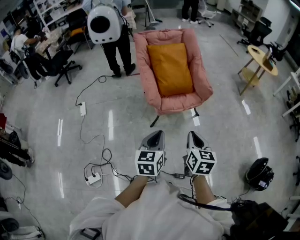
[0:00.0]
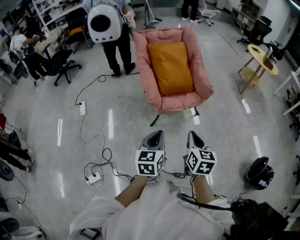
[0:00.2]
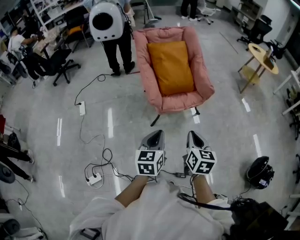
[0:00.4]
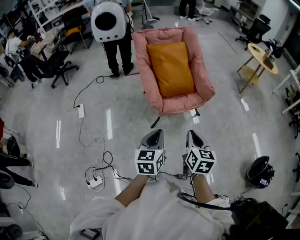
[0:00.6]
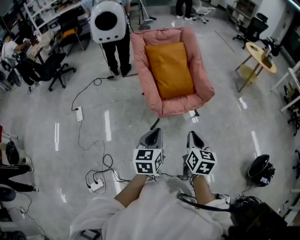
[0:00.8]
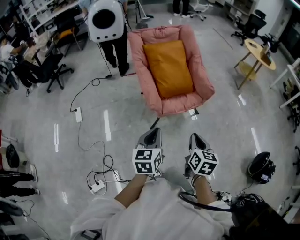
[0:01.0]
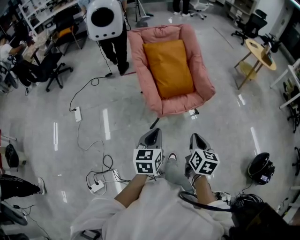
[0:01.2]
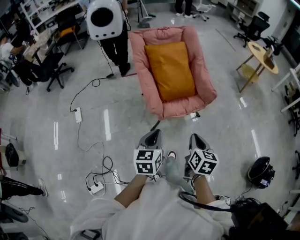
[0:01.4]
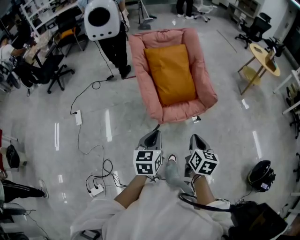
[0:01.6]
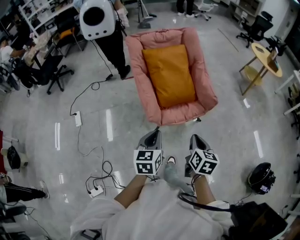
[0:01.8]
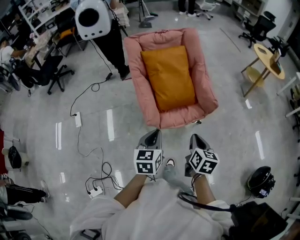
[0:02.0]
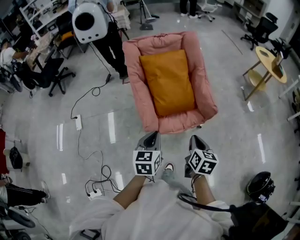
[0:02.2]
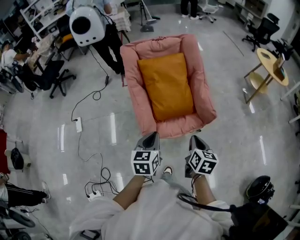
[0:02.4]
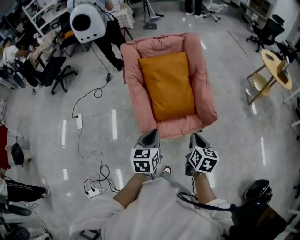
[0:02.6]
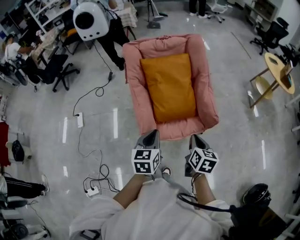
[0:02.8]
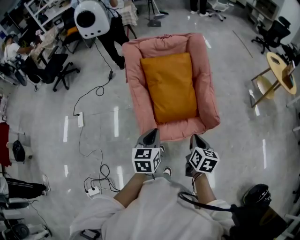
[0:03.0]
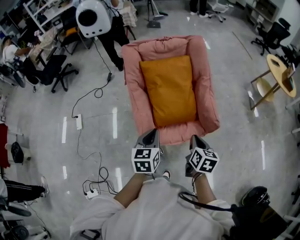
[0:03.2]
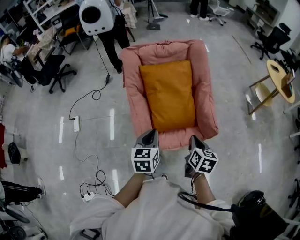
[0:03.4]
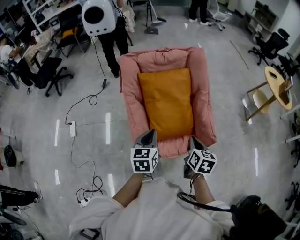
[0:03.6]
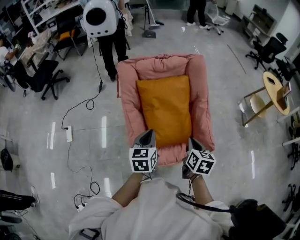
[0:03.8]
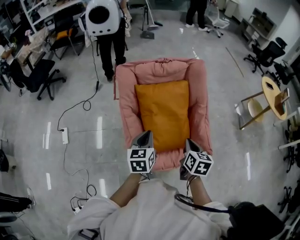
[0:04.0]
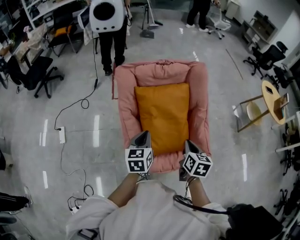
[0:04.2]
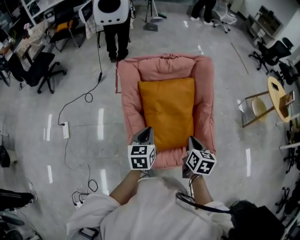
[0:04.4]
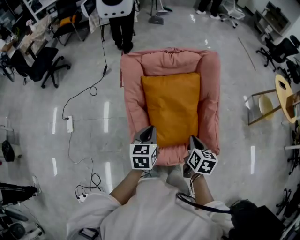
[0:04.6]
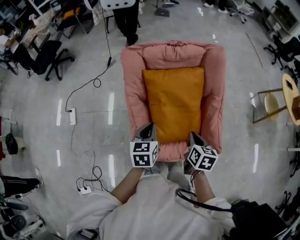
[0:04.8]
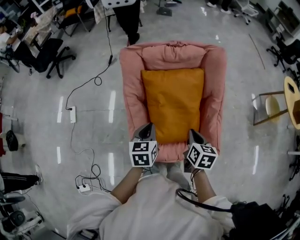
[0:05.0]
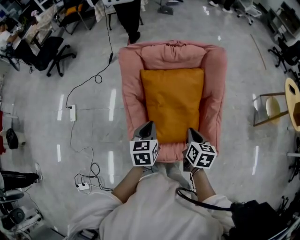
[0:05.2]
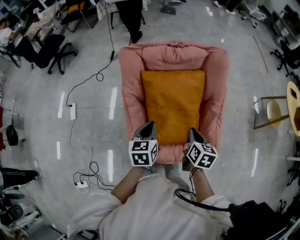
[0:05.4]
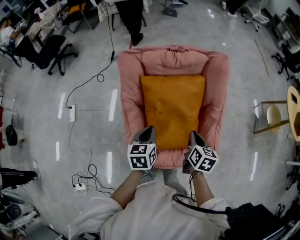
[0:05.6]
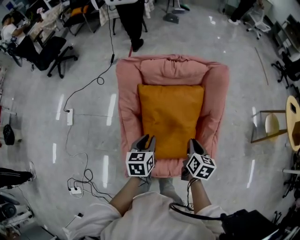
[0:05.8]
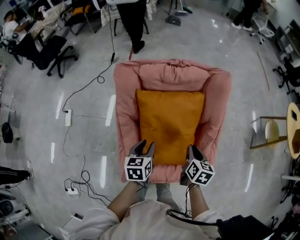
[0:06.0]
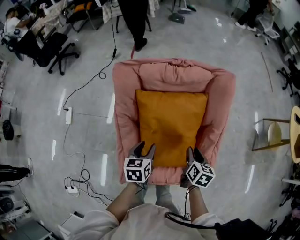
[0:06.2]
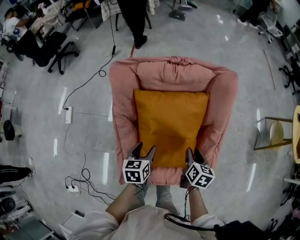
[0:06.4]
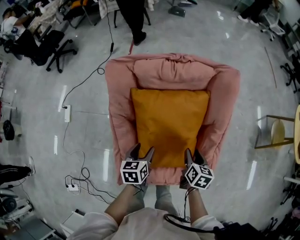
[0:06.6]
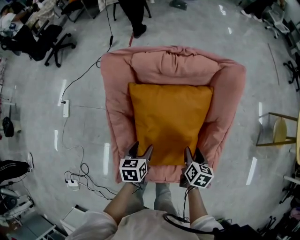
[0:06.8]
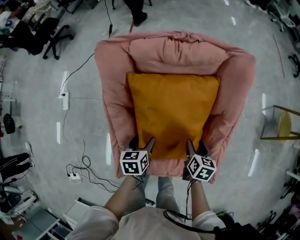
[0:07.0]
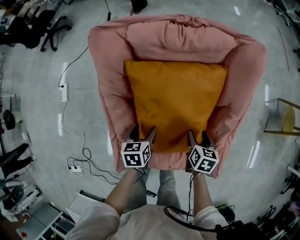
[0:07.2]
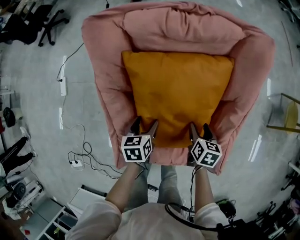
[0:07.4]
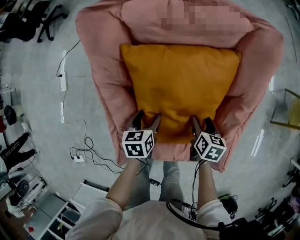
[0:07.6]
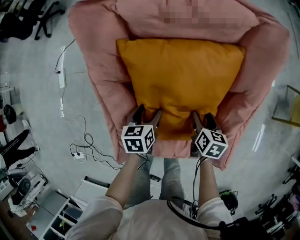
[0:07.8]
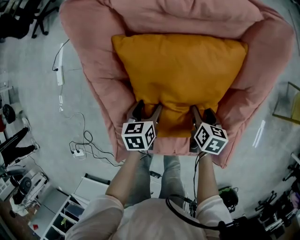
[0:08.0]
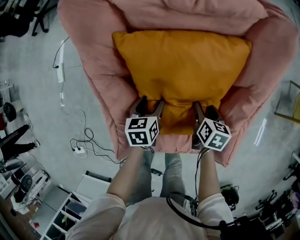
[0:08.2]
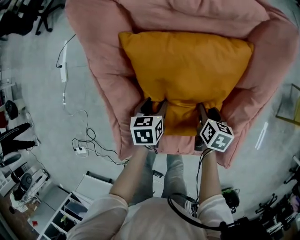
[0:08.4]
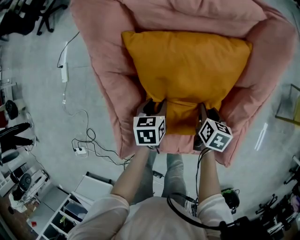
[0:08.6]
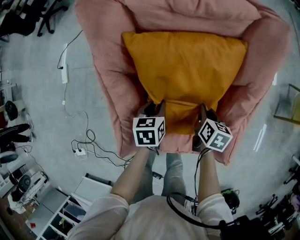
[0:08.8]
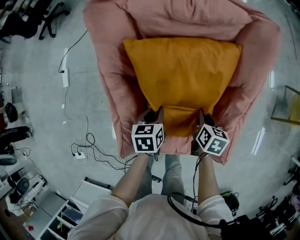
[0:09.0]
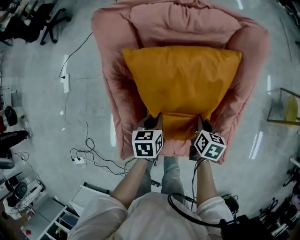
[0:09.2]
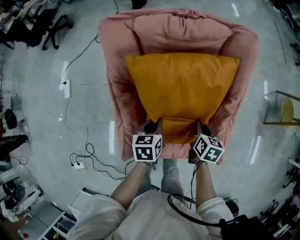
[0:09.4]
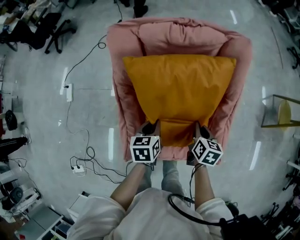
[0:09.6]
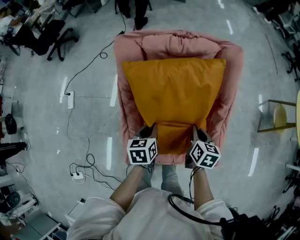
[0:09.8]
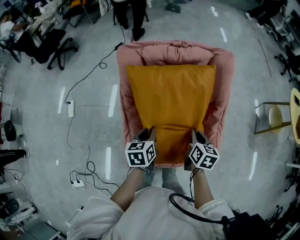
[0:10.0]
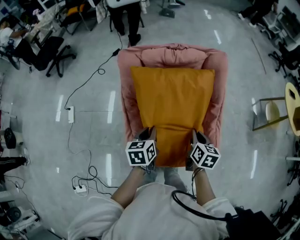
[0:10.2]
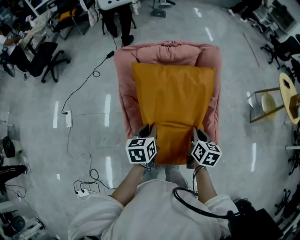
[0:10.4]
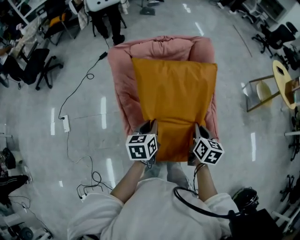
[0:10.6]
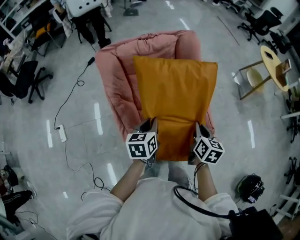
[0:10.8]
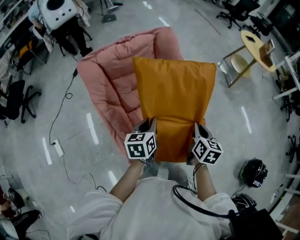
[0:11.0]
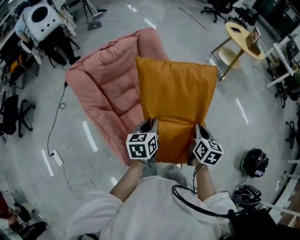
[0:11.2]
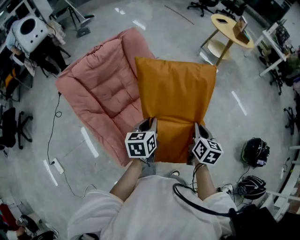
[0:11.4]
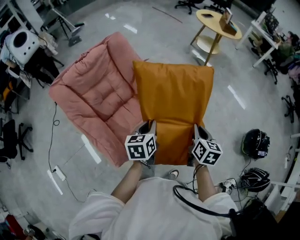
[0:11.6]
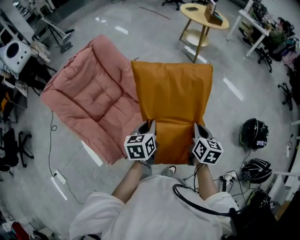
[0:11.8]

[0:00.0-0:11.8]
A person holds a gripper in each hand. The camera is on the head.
0:00.0 to 0:01.4: The left gripper moves forward and to the left, approximately 15 cm. The right gripper goes about 10 cm forward.
0:01.4 to 0:03.0: Both grippers move forward, roughly 25 cm.
0:03.0 to 0:04.4: Both grippers travel together forward, about 25 cm.
0:04.4 to 0:06.0: The right gripper goes about 15 cm forward, downward and to the right. The left gripper goes roughly 10 cm downward, forward and to the right, and opens.
0:06.0 to 0:07.4: Both grippers travel together downward, roughly 20 cm. The left gripper opens up; the right gripper opens.
0:07.4 to 0:08.8: The left gripper closes. Meanwhile the right gripper closes its fingers.
0:08.8 to 0:10.4: The left gripper travels upward by some 25 cm, and rotates approximately 20 degrees; the right gripper moves upward and backward, some 30 cm, and rotates roughly 20 degrees.
0:10.4 to 0:11.8: The left gripper changes place by roughly 35 cm, and turns by about 40 degrees. Meanwhile the right gripper changes place by approximately 40 cm, and changes its angle by roughly 40 degrees.

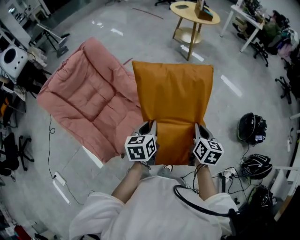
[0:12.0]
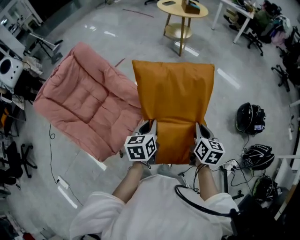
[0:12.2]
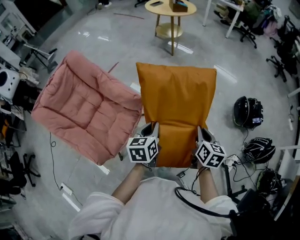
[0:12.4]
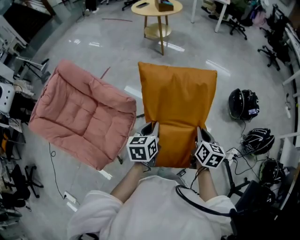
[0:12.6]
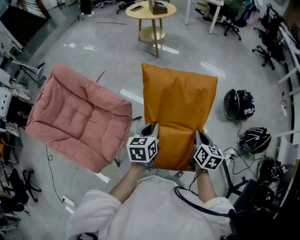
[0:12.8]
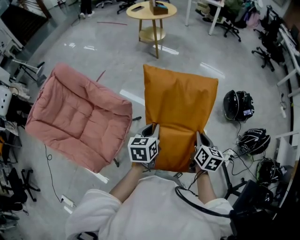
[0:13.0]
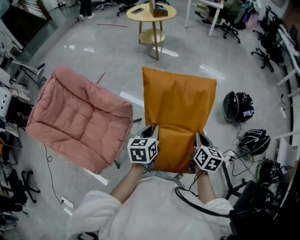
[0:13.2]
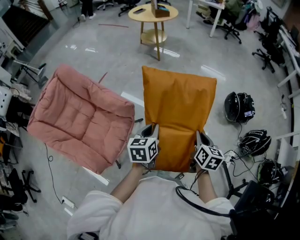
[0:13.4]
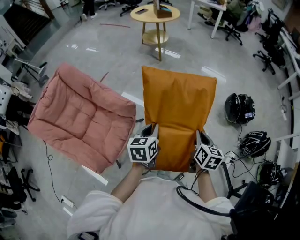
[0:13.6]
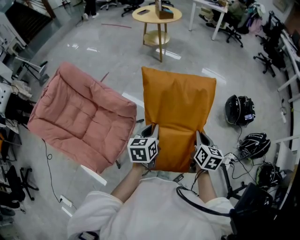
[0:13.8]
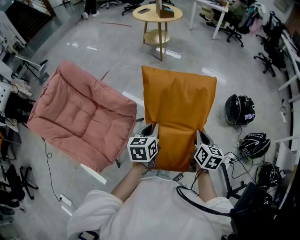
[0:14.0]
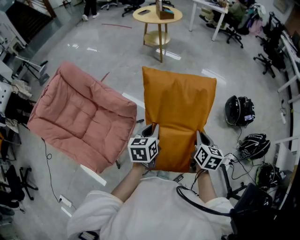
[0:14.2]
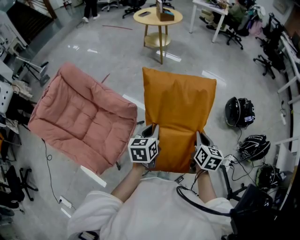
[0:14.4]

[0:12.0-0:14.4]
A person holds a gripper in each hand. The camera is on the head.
0:12.0 to 0:13.2: The left gripper goes some 15 cm to the right; the right gripper moves to the right and backward, roughly 20 cm.
0:13.2 to 0:14.4: The grippers stay close to where they were, moving slightly.

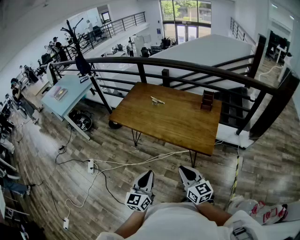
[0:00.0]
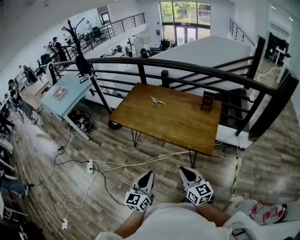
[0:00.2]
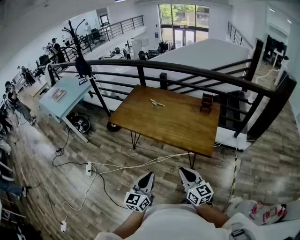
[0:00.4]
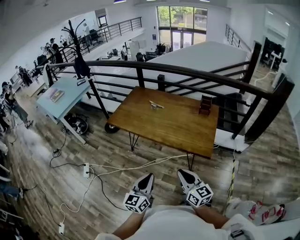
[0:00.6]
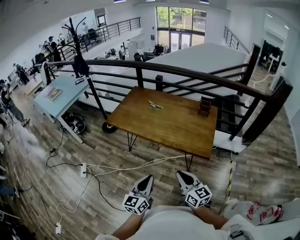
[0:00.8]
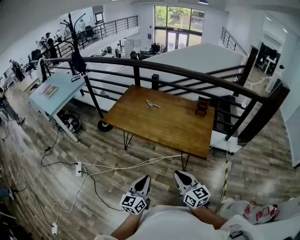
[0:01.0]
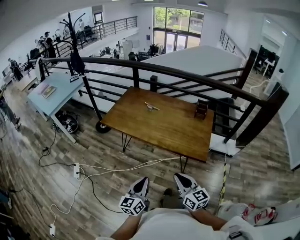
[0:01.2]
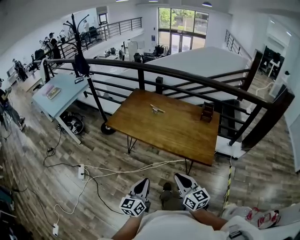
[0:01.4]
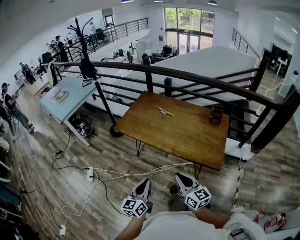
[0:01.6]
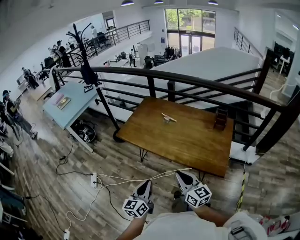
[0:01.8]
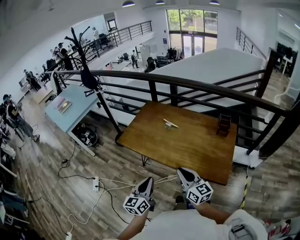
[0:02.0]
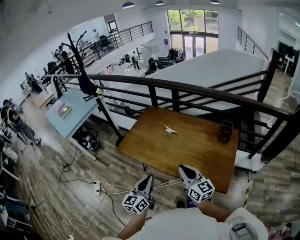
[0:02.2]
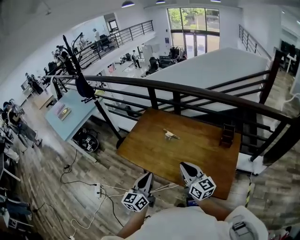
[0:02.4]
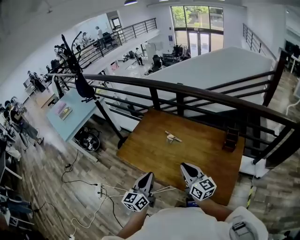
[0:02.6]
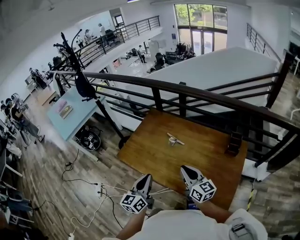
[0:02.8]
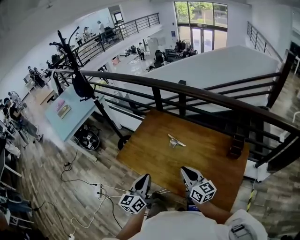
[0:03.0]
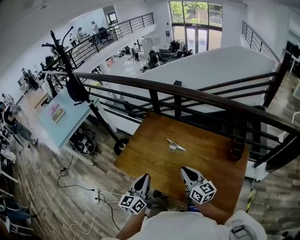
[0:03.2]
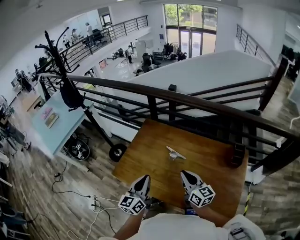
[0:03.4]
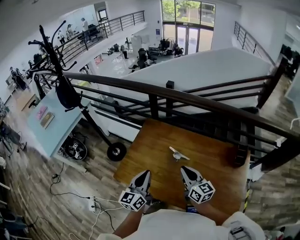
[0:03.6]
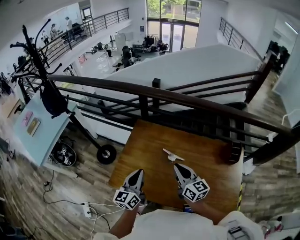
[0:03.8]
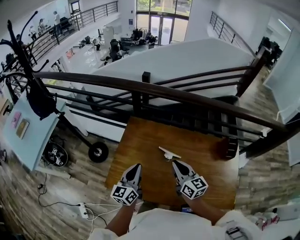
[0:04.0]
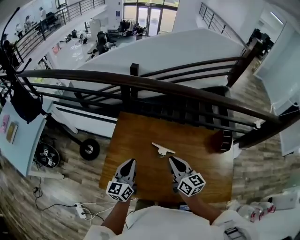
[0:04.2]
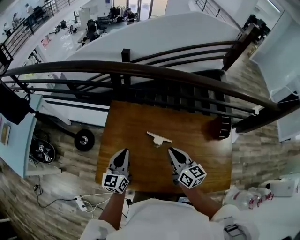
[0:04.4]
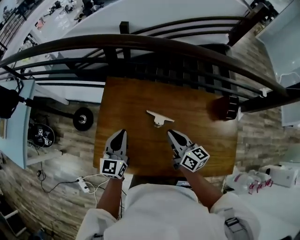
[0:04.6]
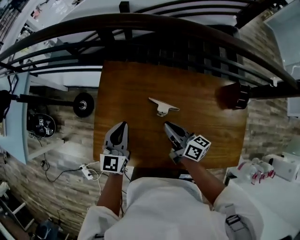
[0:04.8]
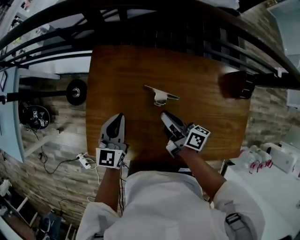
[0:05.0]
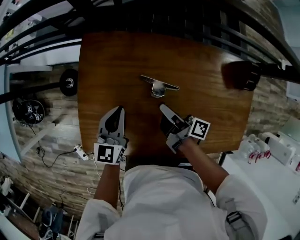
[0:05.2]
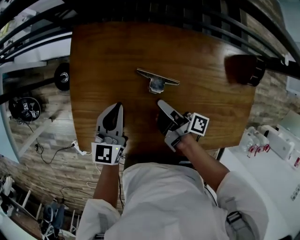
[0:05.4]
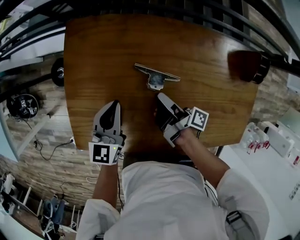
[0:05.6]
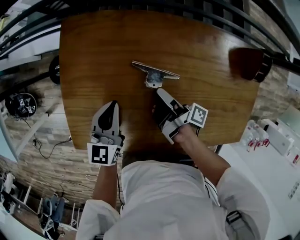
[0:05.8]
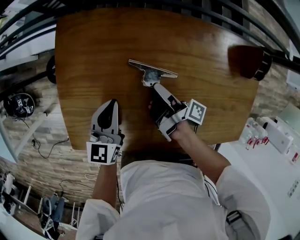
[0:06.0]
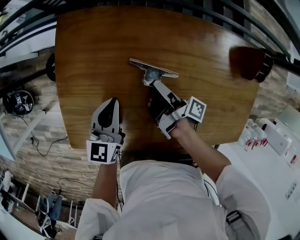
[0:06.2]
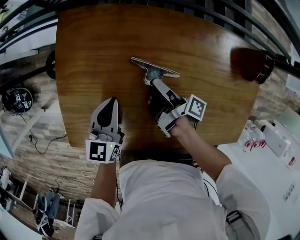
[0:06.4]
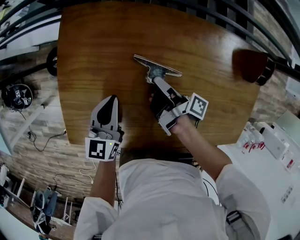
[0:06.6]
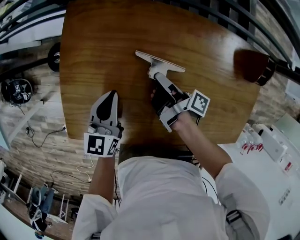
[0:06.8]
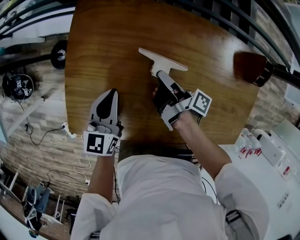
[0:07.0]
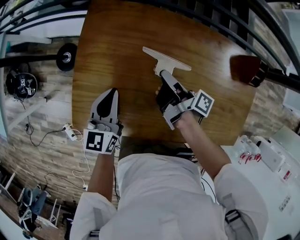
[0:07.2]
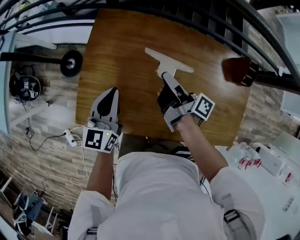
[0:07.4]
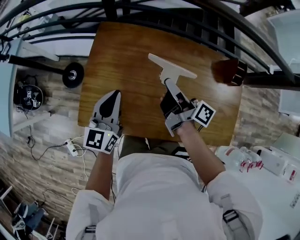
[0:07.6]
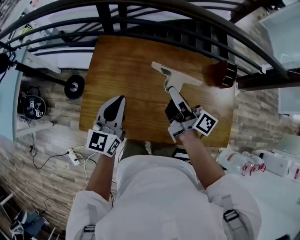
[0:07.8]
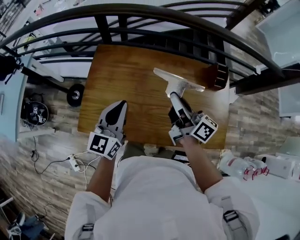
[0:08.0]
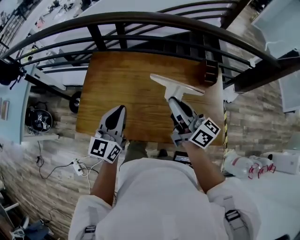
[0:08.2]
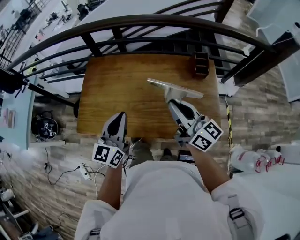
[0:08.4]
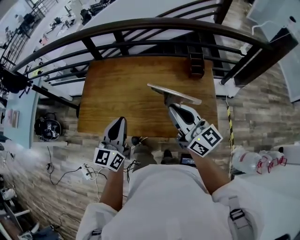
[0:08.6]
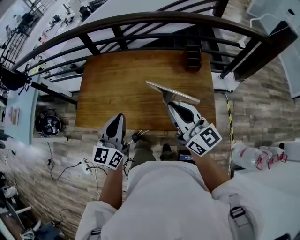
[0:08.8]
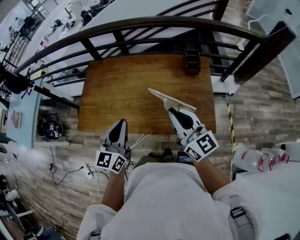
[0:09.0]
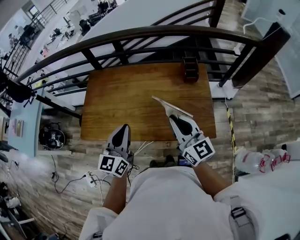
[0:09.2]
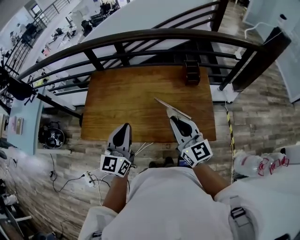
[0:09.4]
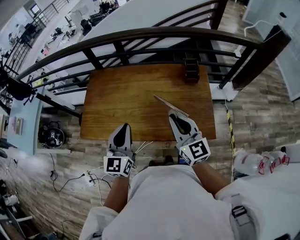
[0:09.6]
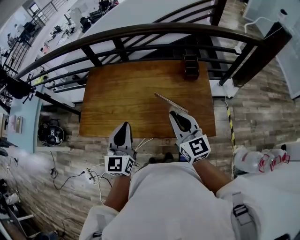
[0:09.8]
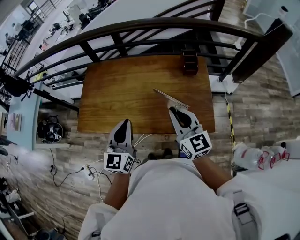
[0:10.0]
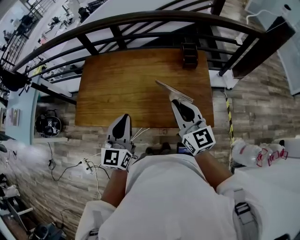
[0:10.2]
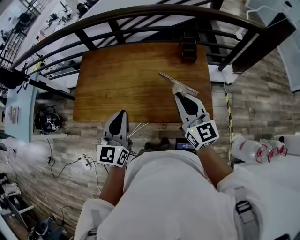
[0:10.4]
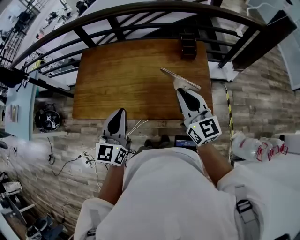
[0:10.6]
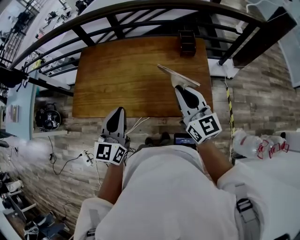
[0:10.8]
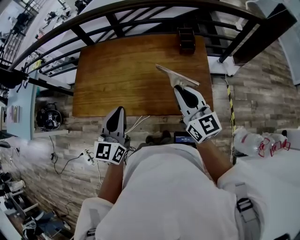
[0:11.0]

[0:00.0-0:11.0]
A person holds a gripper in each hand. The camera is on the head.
0:00.0 to 0:01.6: Both grippers travel together to the left and forward, approximately 15 cm.
0:01.6 to 0:03.2: The pair of grippers is taken forward, roughly 40 cm.
0:03.2 to 0:04.8: The right gripper goes about 25 cm forward, downward and to the left, and rotates some 30 degrees; the left gripper moves forward and downward, some 30 cm, and rotates some 30 degrees.
0:04.8 to 0:06.2: The two grippers go about 15 cm downward. The right gripper rolls clockwise, seen from behind, by some 60 degrees, and opens.
0:06.2 to 0:07.8: The left gripper moves upward and backward, some 25 cm, while the right gripper moves upward, about 30 cm, twists about 50 degrees counterclockwise, seen from behind, and closes up.
0:07.8 to 0:09.4: The left gripper heads backward, to the right and upward, covering about 30 cm. Meanwhile the right gripper travels backward and to the right by approximately 35 cm, and rotates around the line of its fingers by about 60 degrees, counterclockwise from behind.
0:09.4 to 0:11.0: The left gripper changes place by some 5 cm. Meanwhile the right gripper moves to the right, approximately 5 cm.
